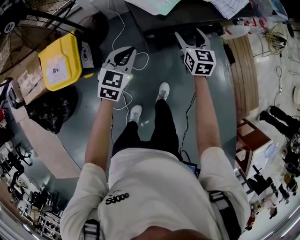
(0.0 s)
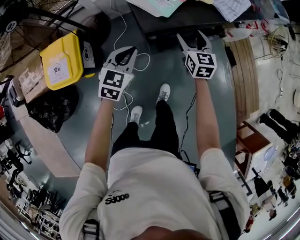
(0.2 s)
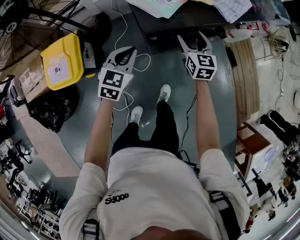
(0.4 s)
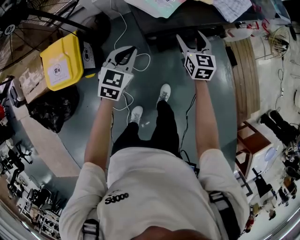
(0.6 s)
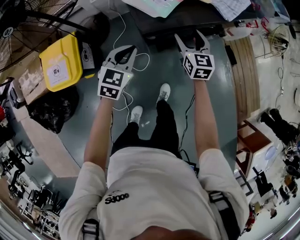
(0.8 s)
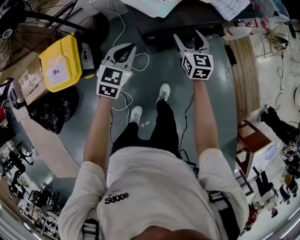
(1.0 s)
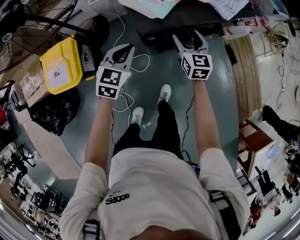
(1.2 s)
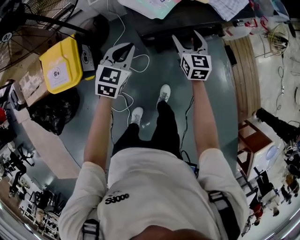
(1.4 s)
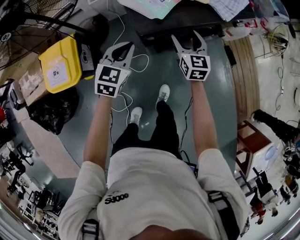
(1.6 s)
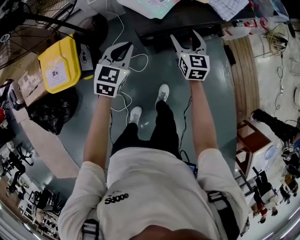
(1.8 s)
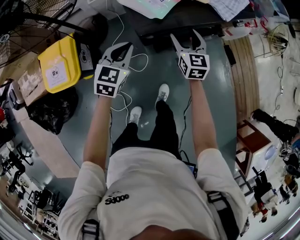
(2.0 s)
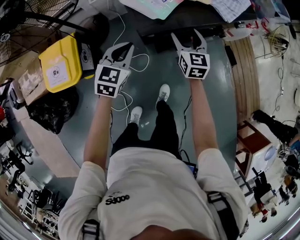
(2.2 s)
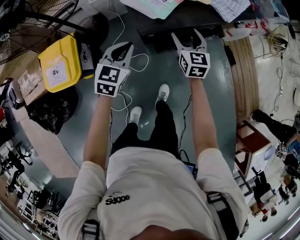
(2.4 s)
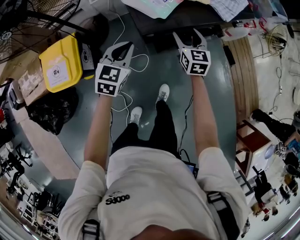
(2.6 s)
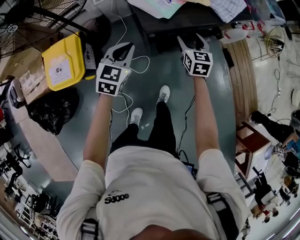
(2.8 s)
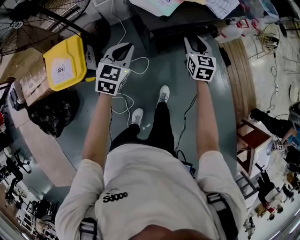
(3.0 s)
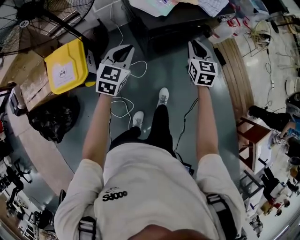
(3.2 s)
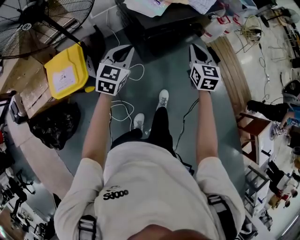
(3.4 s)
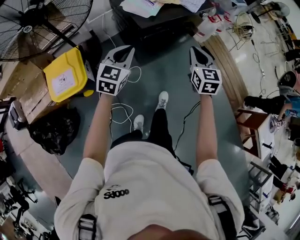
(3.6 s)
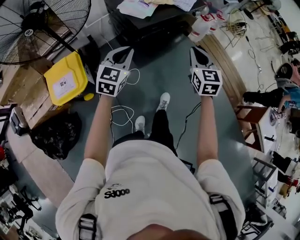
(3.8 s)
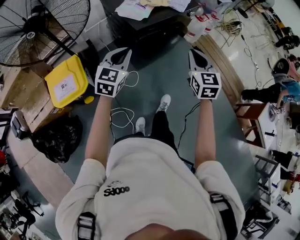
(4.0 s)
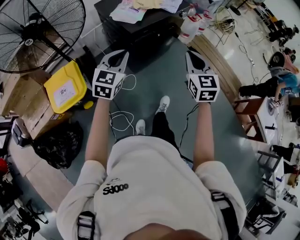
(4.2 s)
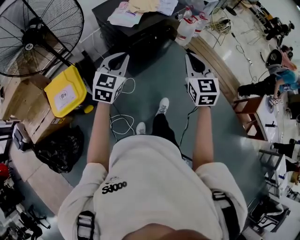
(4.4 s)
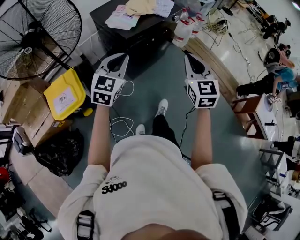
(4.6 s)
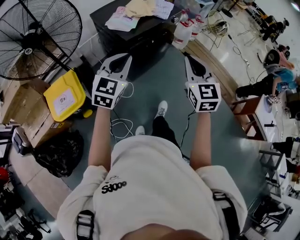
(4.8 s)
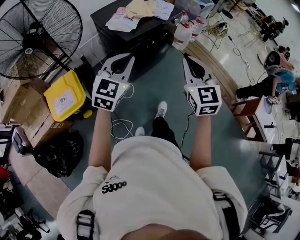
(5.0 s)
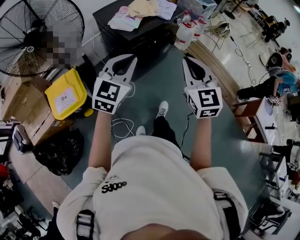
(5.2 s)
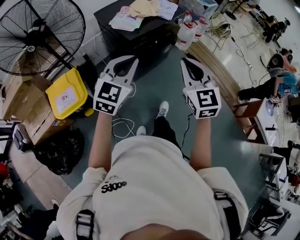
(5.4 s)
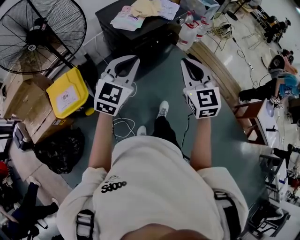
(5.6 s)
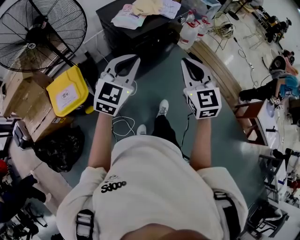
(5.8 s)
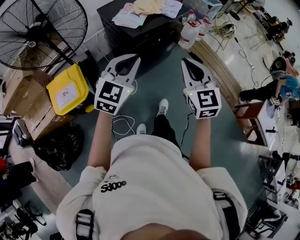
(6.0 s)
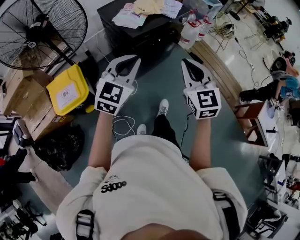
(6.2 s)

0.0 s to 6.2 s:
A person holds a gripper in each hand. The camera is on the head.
0.0 to 1.6 s: There are only small adjustments of the grippers.
1.6 to 3.2 s: The left gripper goes about 15 cm backward, upward and to the left. Meanwhile the right gripper shifts some 15 cm backward and upward, and closes up.
3.2 to 4.6 s: The left gripper moves backward, upward and to the right, roughly 25 cm, and rotates roughly 20 degrees, while the right gripper shifts roughly 35 cm backward and upward.
4.6 to 6.2 s: The left gripper moves about 5 cm. Meanwhile the right gripper changes place by roughly 5 cm.

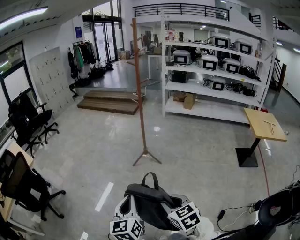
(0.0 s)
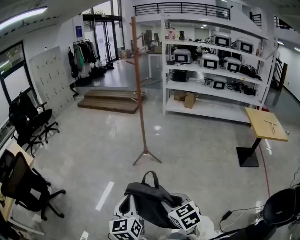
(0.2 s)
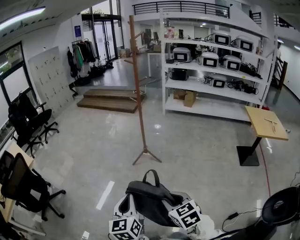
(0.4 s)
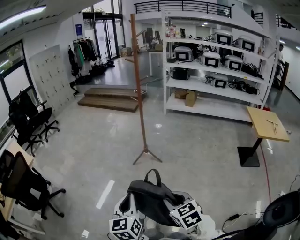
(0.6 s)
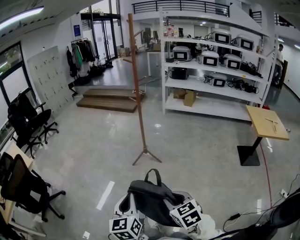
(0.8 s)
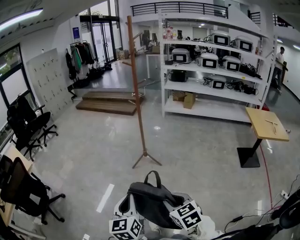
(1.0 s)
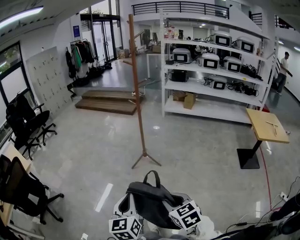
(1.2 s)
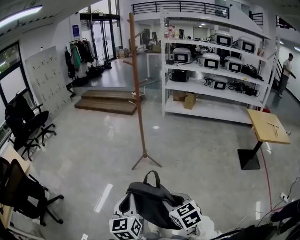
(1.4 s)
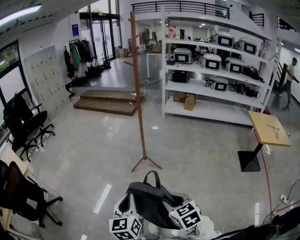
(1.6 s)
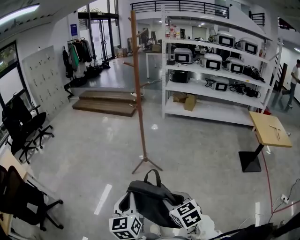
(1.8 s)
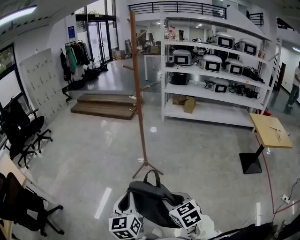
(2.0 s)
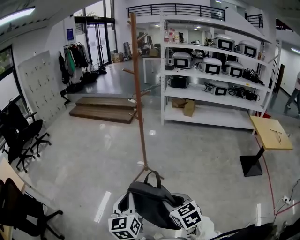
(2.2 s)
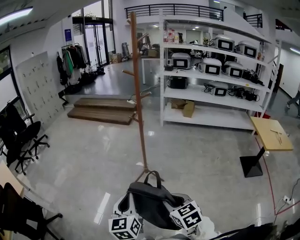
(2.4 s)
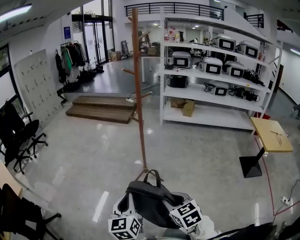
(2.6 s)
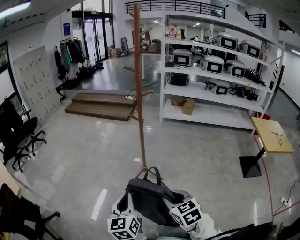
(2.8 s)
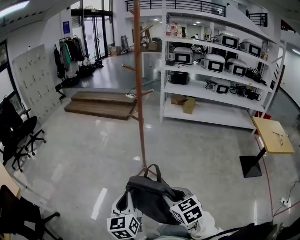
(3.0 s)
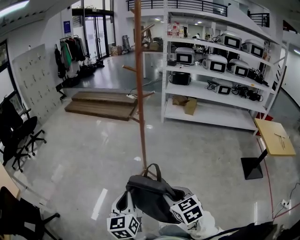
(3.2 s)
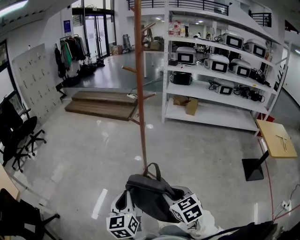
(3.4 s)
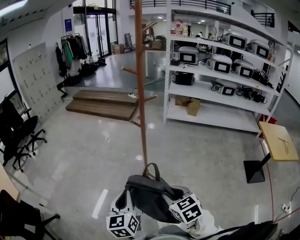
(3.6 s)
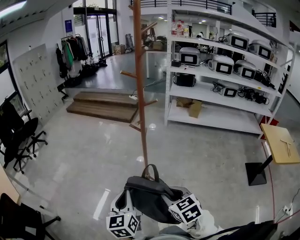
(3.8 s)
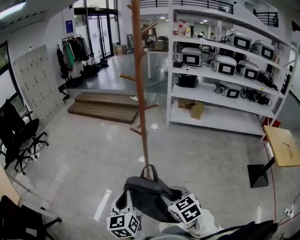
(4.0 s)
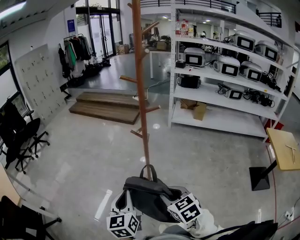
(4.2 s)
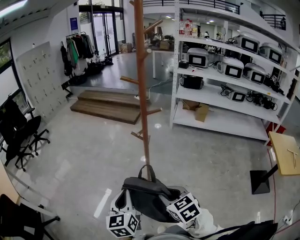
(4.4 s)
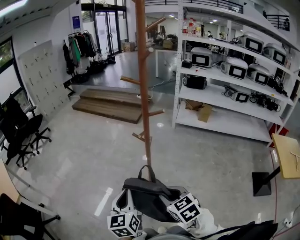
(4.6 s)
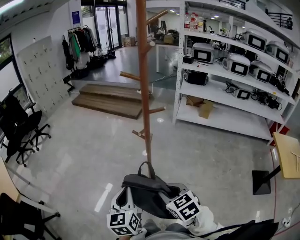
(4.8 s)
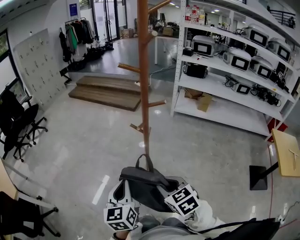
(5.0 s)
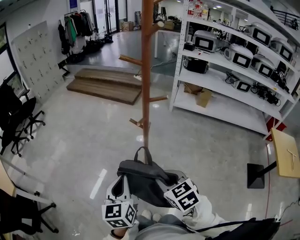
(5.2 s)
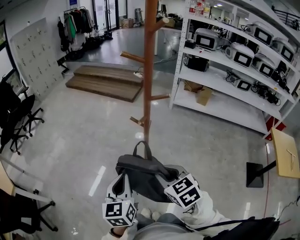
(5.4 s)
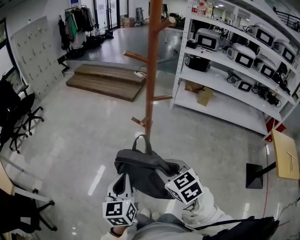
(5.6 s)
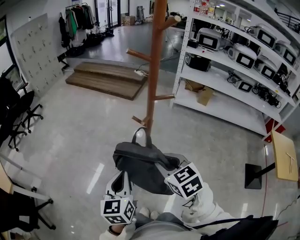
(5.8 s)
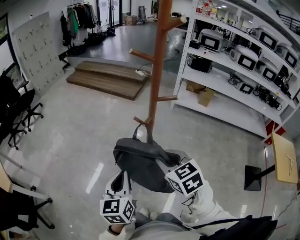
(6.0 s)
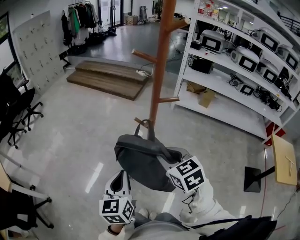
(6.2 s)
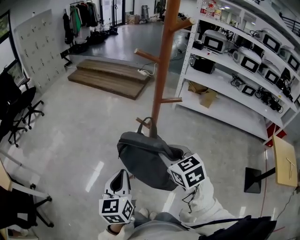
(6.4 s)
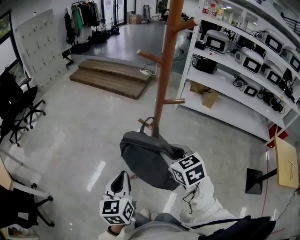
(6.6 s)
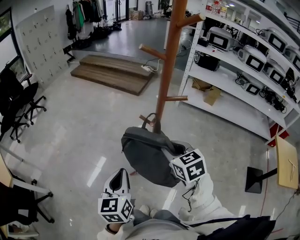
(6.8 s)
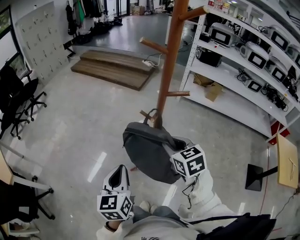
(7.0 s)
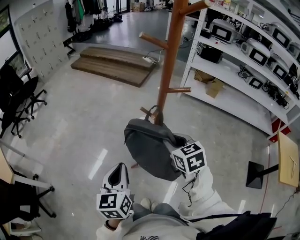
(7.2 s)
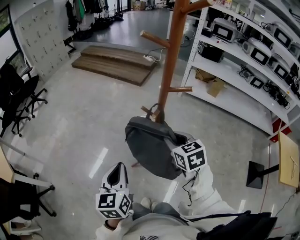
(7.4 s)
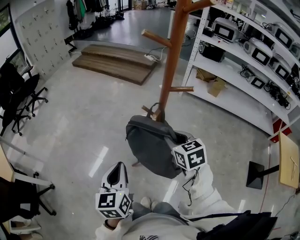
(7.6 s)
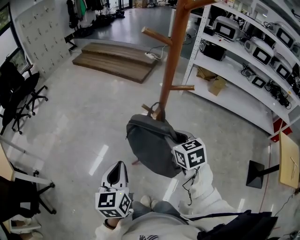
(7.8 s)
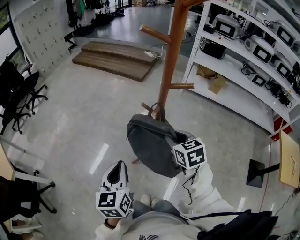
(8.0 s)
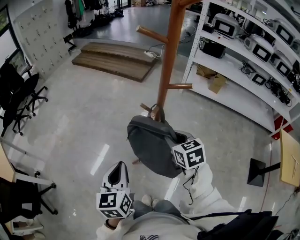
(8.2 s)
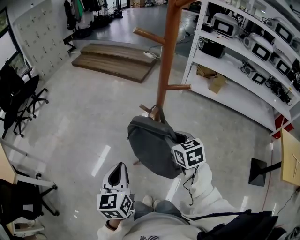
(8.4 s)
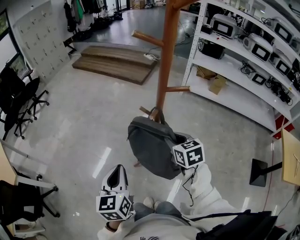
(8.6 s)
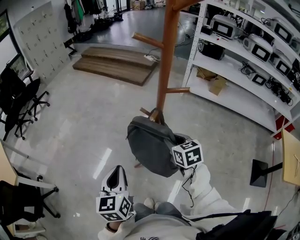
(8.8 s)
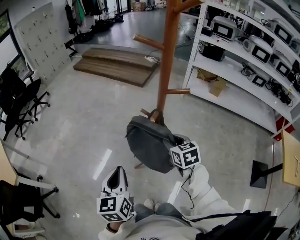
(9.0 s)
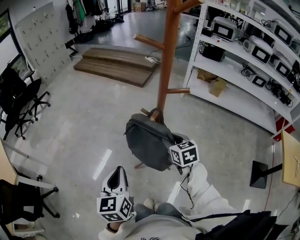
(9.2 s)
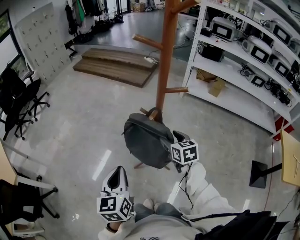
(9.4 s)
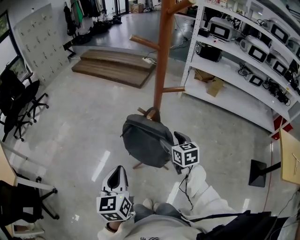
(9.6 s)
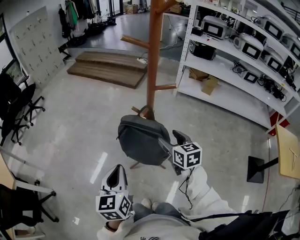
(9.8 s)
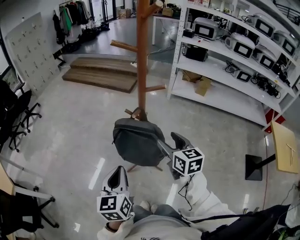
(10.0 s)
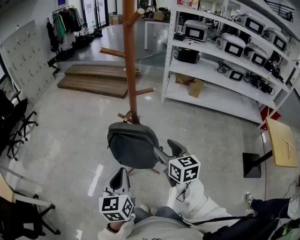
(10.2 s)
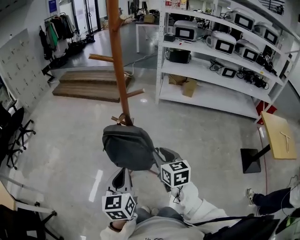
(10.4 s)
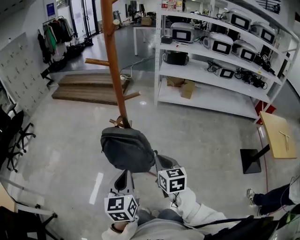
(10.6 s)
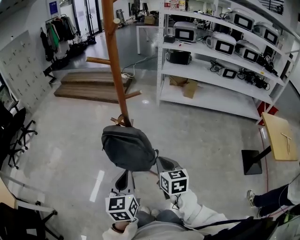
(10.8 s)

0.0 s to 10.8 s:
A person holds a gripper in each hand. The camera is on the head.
0.0 to 1.6 s: Both grippers move forward, some 10 cm.
1.6 to 3.0 s: Both grippers travel together forward, roughly 20 cm.
3.0 to 4.6 s: The grippers both shift forward by approximately 20 cm.
4.6 to 6.2 s: The left gripper travels forward by some 5 cm. Meanwhile the right gripper moves forward, approximately 15 cm.
6.2 to 7.8 s: The right gripper moves forward and downward, about 10 cm.
7.8 to 9.2 s: The right gripper travels downward by approximately 5 cm.
9.2 to 10.8 s: The left gripper goes roughly 15 cm to the right. The right gripper shifts roughly 15 cm backward and to the right, changes its angle by approximately 20 degrees, and closes up.

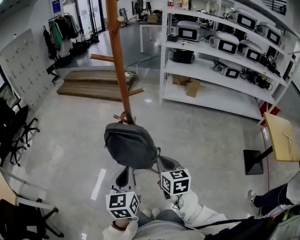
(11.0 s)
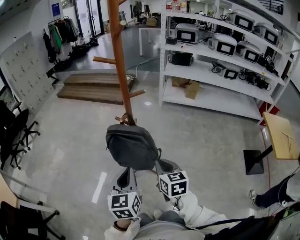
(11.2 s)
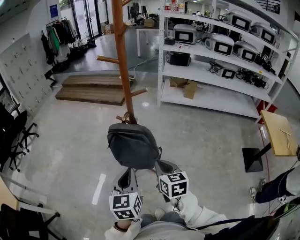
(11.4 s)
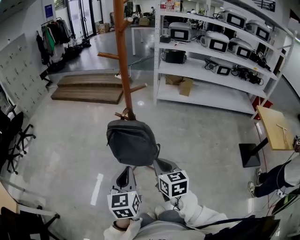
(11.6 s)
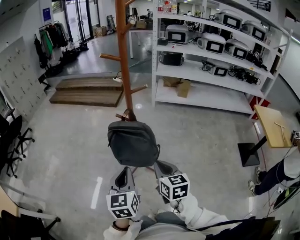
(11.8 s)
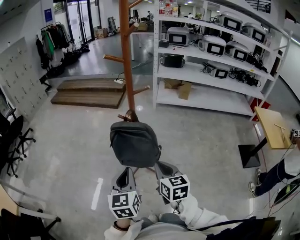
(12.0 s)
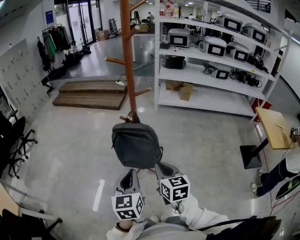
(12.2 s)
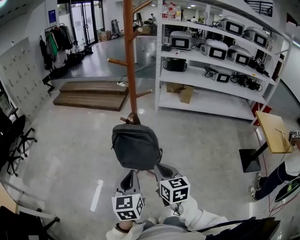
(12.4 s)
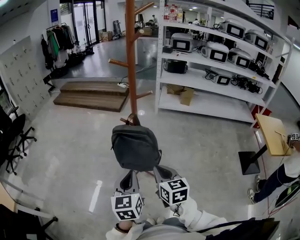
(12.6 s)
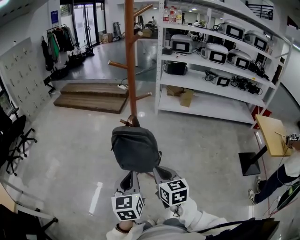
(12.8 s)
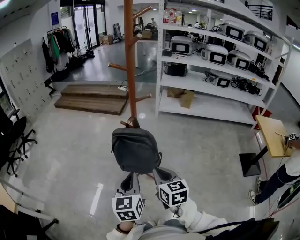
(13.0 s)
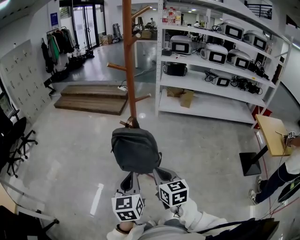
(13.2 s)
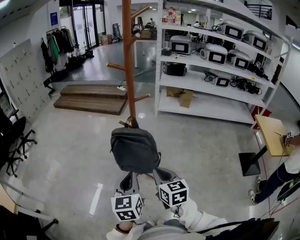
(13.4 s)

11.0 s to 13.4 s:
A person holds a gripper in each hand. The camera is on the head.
11.0 to 12.2 s: The left gripper moves roughly 5 cm. Meanwhile the right gripper travels backward and to the left by some 10 cm.
12.2 to 13.4 s: Both grippers stay about where they are.

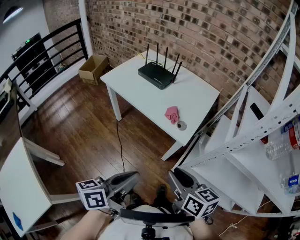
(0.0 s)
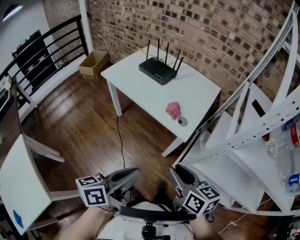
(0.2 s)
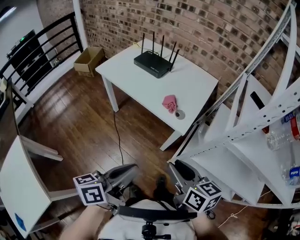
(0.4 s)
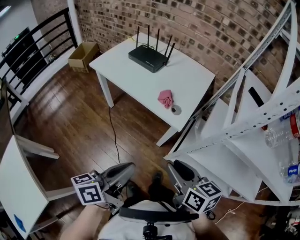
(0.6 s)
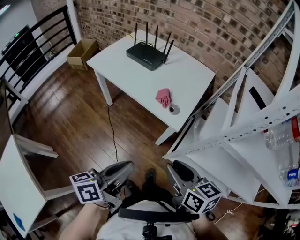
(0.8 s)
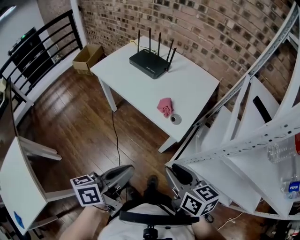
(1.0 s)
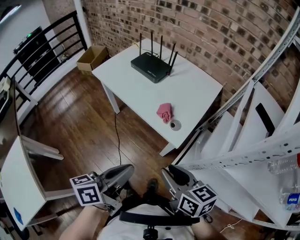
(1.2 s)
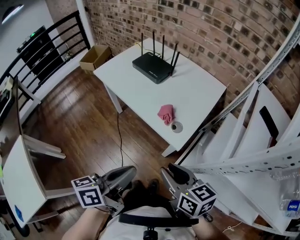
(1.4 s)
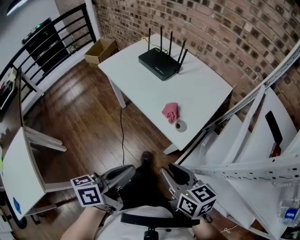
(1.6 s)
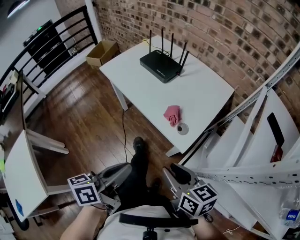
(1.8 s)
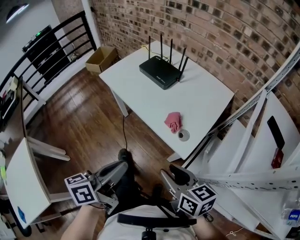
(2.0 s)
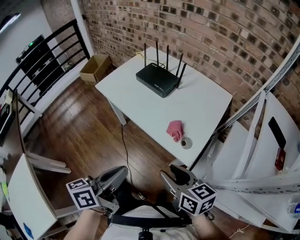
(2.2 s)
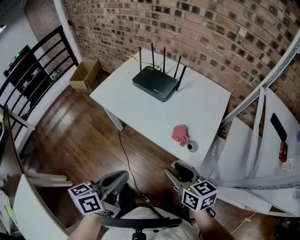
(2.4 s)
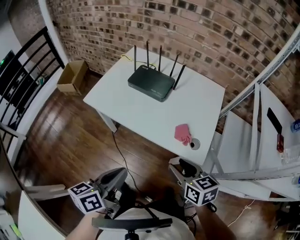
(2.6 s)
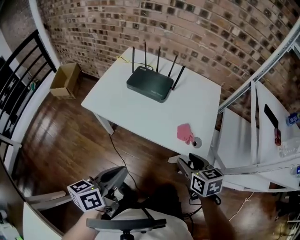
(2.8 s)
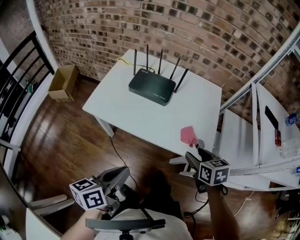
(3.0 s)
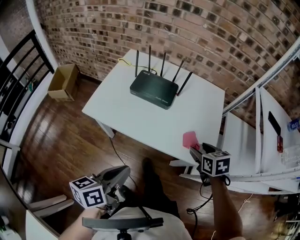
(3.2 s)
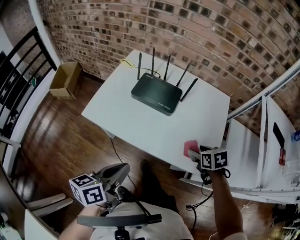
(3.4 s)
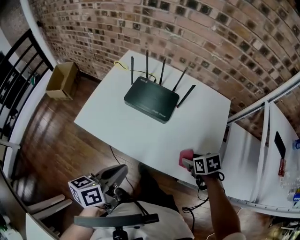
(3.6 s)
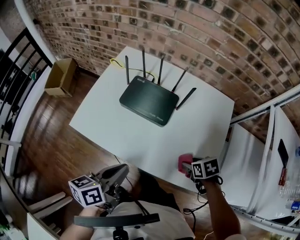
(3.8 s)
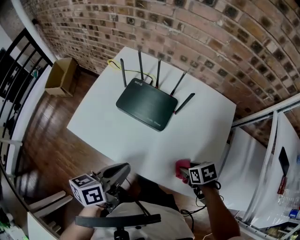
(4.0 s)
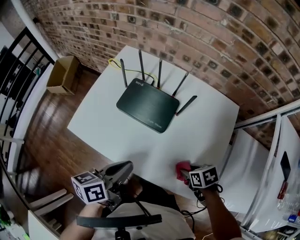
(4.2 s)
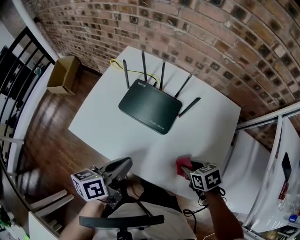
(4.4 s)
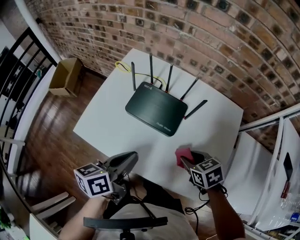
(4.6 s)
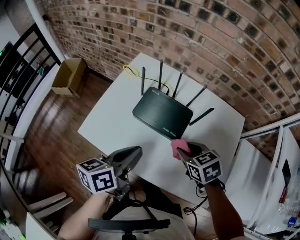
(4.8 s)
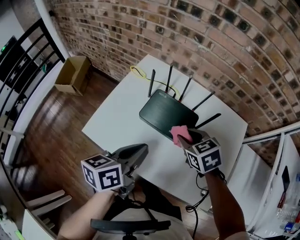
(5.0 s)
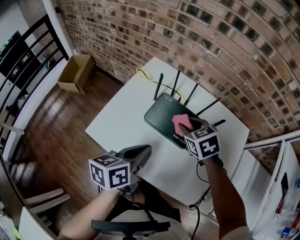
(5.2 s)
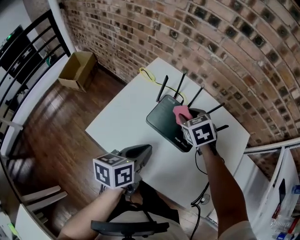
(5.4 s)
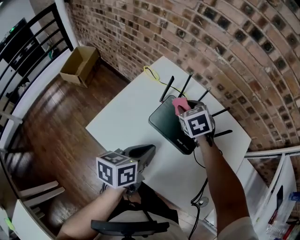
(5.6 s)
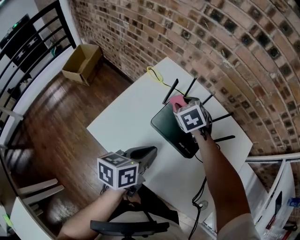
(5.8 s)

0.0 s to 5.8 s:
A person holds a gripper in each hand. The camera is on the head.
0.0 to 1.4 s: The left gripper heads forward and to the right, covering some 15 cm, while the right gripper is displaced forward by approximately 10 cm.
1.4 to 2.8 s: The right gripper ends up some 25 cm from where it was, and rotates roughly 30 degrees. The left gripper ends up roughly 35 cm from where it was.
2.8 to 4.4 s: The right gripper moves roughly 30 cm, and swivels roughly 30 degrees, while the left gripper moves about 35 cm.
4.4 to 5.8 s: The left gripper heads forward and to the left, covering roughly 15 cm, while the right gripper travels forward and to the left by approximately 40 cm, and swivels some 40 degrees.
